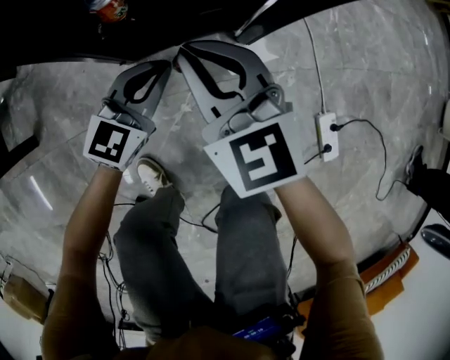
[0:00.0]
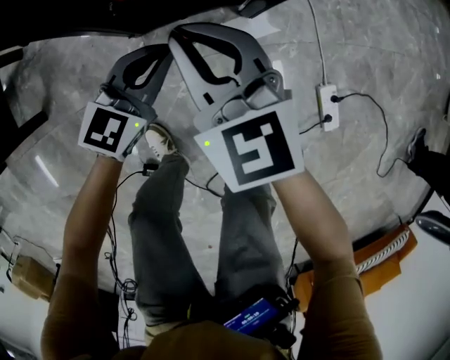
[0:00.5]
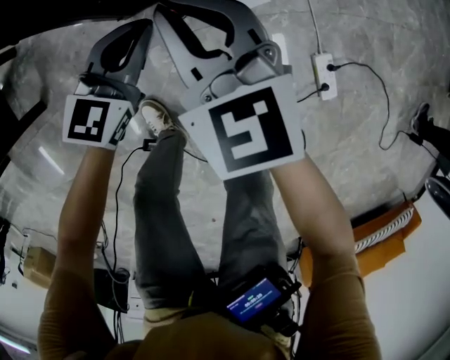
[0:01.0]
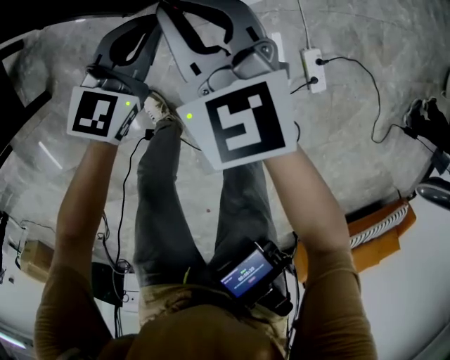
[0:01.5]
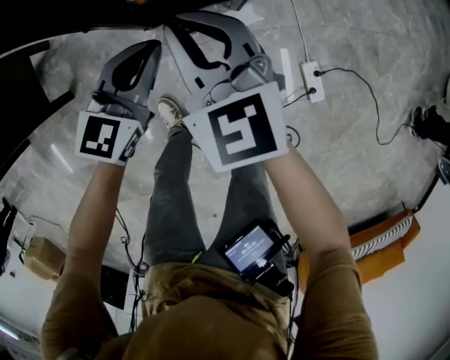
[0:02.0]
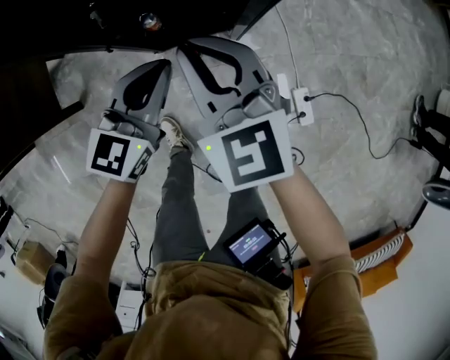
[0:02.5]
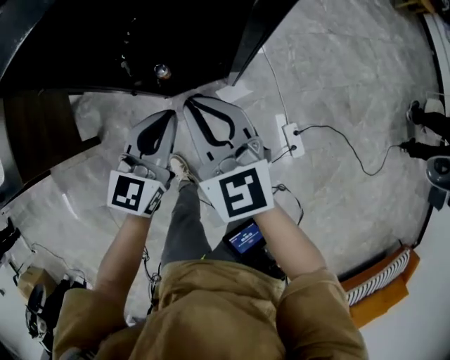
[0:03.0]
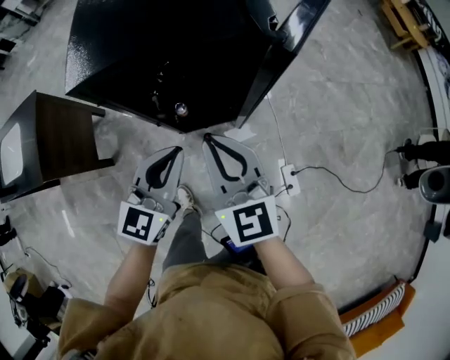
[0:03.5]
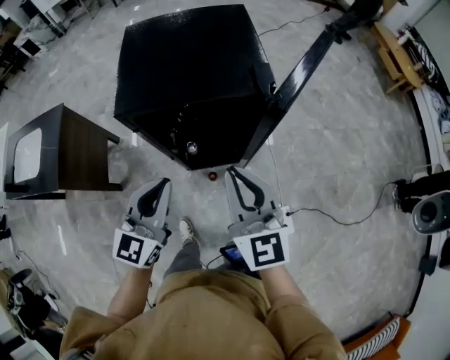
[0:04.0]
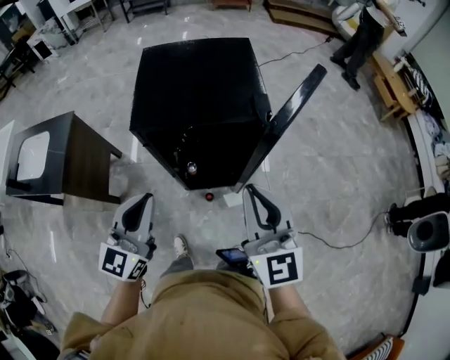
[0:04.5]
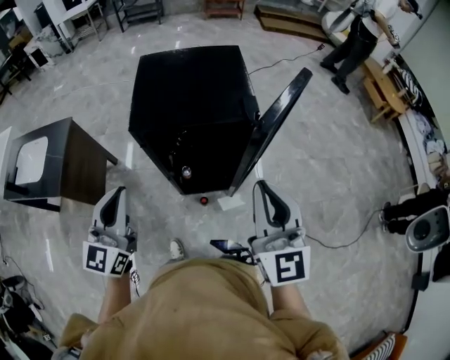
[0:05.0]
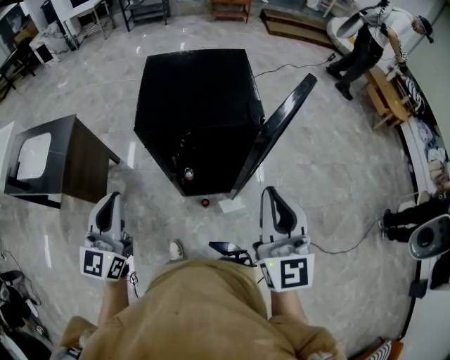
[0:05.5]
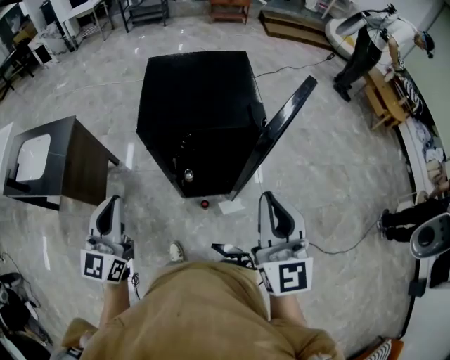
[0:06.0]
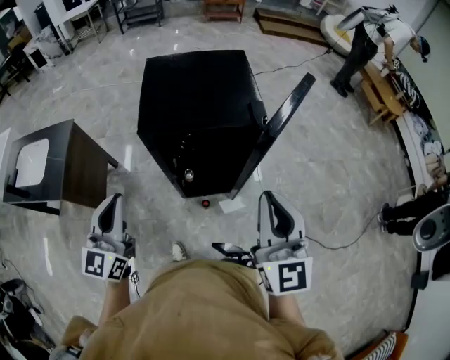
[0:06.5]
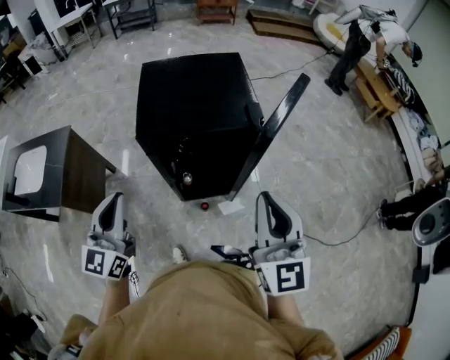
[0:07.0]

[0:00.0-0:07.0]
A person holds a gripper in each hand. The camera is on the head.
0:00.0 to 0:02.0: Both grippers travel together upward, roughly 30 cm.
0:02.0 to 0:03.5: Both grippers travel together upward, some 35 cm.
0:03.5 to 0:05.0: The left gripper shifts approximately 25 cm upward and to the left, and rotates approximately 20 degrees. Meanwhile the right gripper heads upward, covering some 20 cm.
0:05.0 to 0:07.0: There are only small adjustments of the grippers.

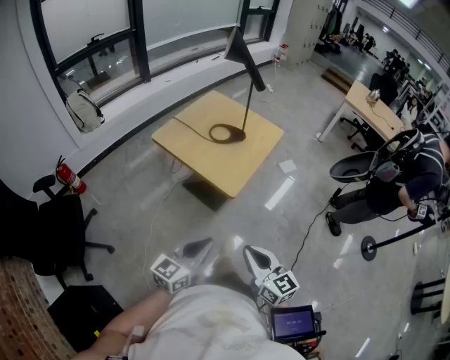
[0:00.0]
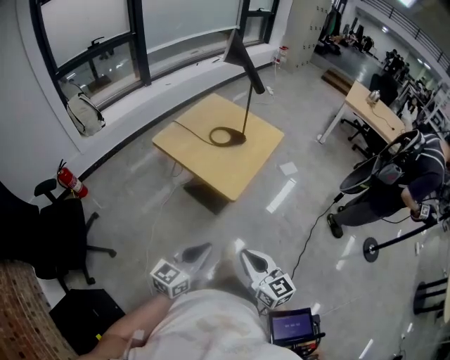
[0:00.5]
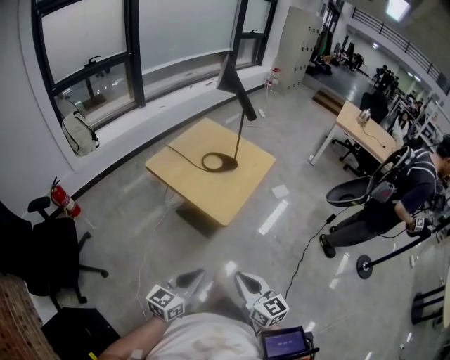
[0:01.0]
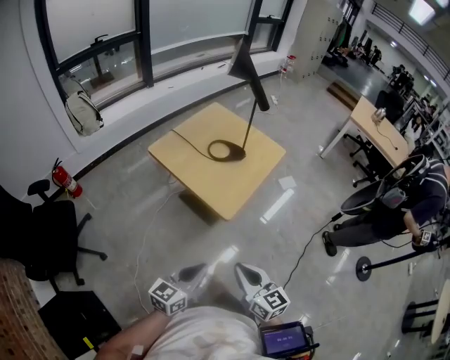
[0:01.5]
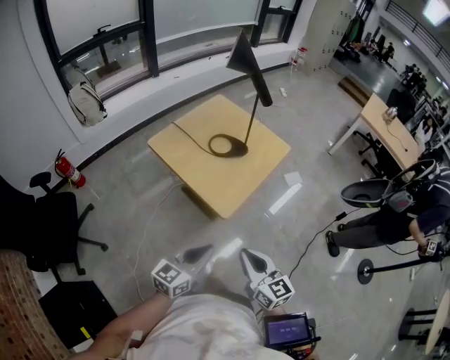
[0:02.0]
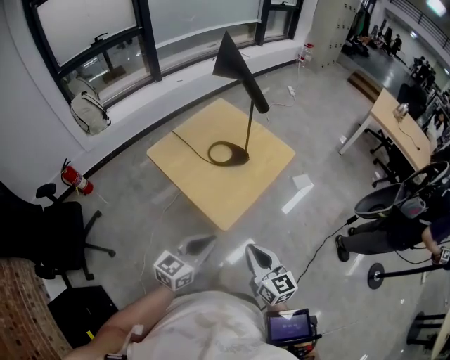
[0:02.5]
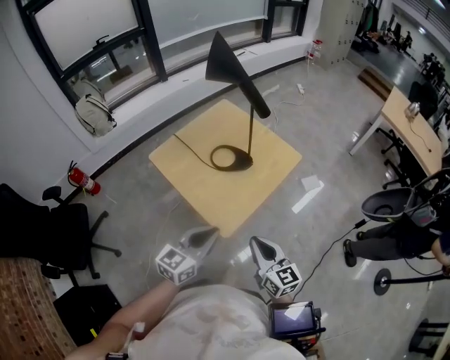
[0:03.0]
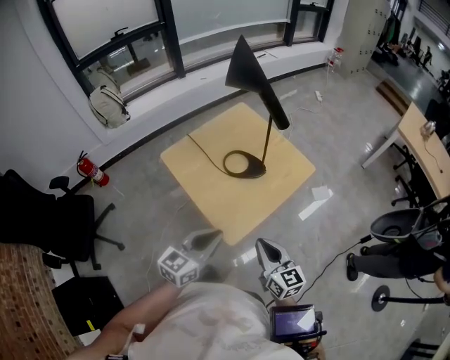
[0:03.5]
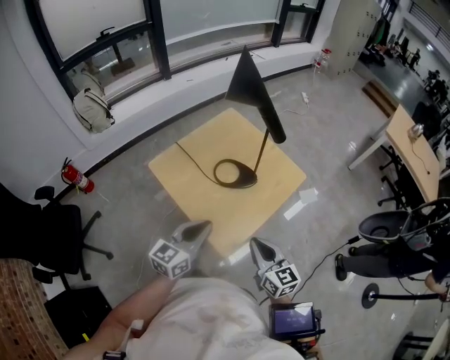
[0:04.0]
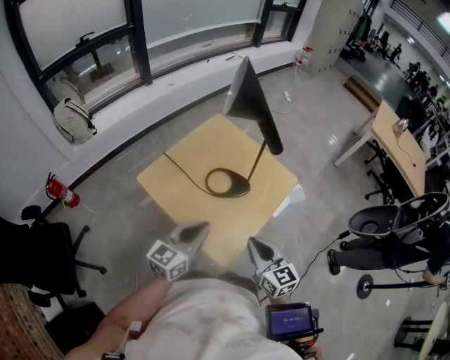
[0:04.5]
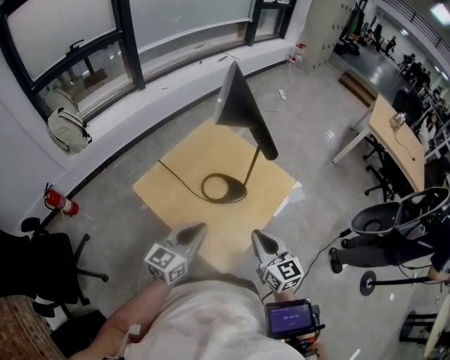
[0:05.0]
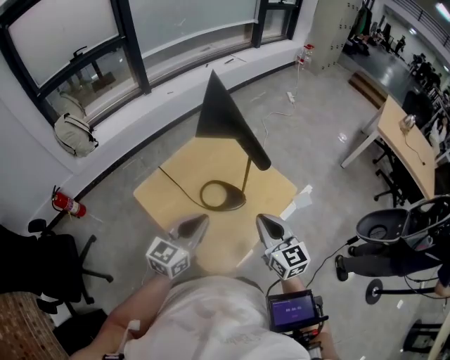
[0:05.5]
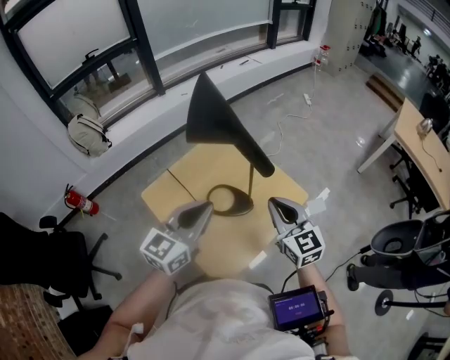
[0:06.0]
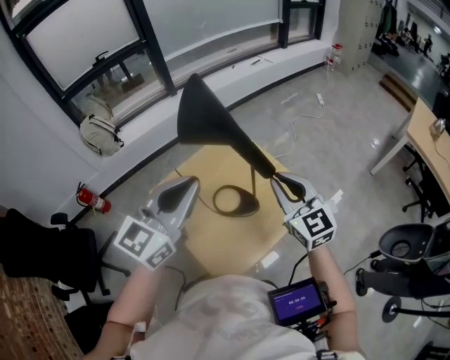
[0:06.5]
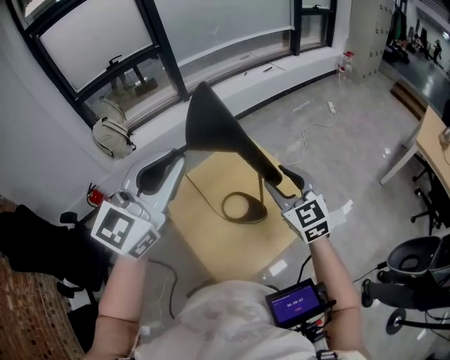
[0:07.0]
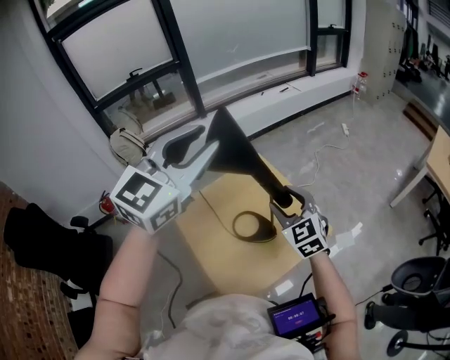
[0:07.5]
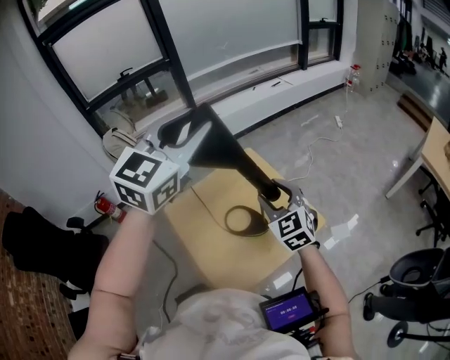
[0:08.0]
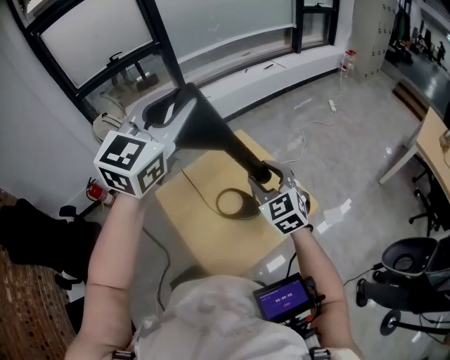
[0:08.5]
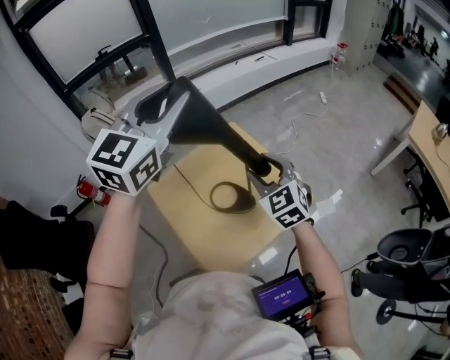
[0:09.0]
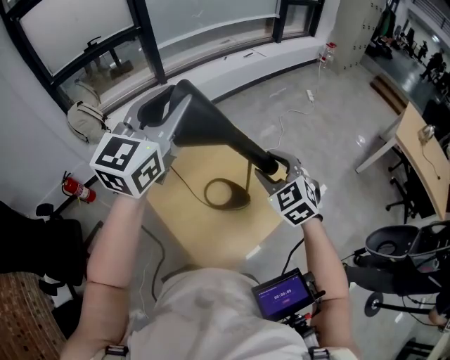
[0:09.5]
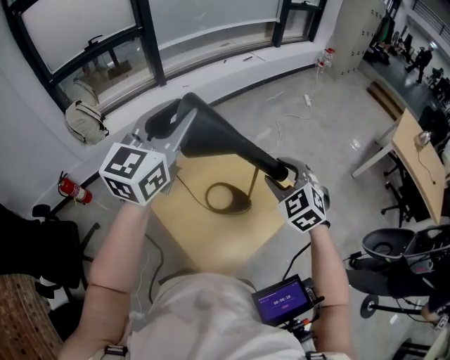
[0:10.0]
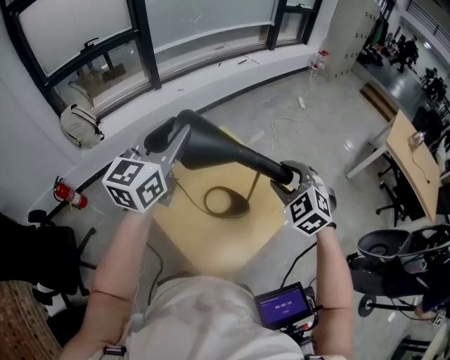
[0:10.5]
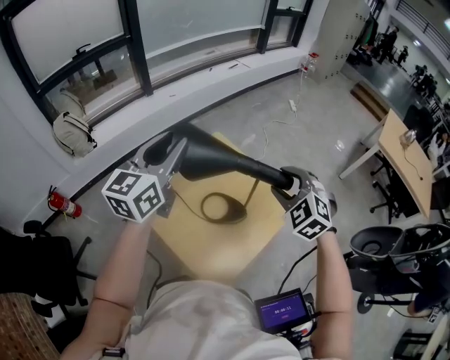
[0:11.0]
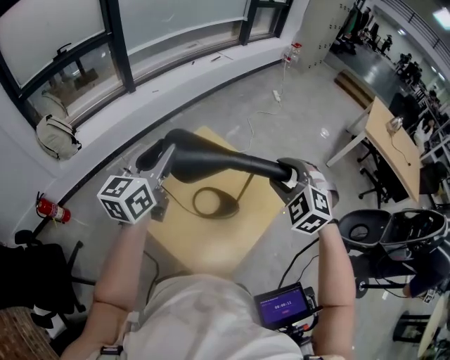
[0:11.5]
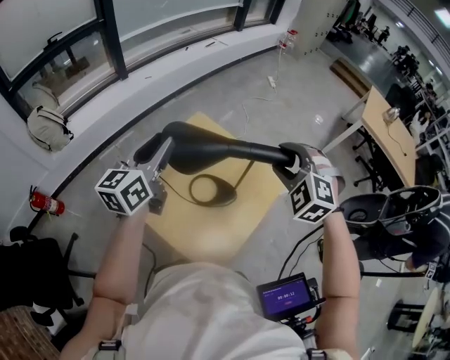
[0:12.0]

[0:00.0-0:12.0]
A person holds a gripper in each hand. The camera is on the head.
0:00.0 to 0:02.0: The grippers both shift forward by about 10 cm.
0:02.0 to 0:04.0: The two grippers go roughly 25 cm forward.
0:04.0 to 0:06.0: The grippers both shift forward and upward by roughly 20 cm.
0:06.0 to 0:08.0: The right gripper moves forward, some 10 cm, rotates some 20 degrees, and opens its fingers; the left gripper travels upward and forward by roughly 30 cm, swivels some 30 degrees, and opens up.
0:08.0 to 0:10.0: The right gripper swivels approximately 20 degrees. The left gripper heads to the left and downward, covering about 10 cm.
0:10.0 to 0:12.0: The right gripper rotates about 30 degrees; the left gripper heads downward, covering about 15 cm, and swivels some 30 degrees.

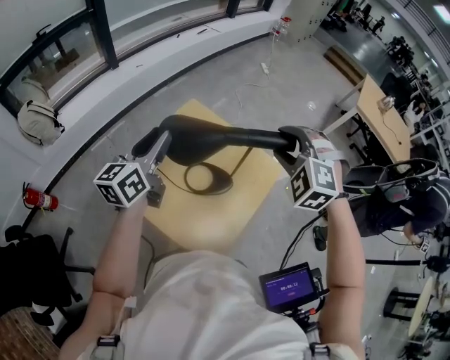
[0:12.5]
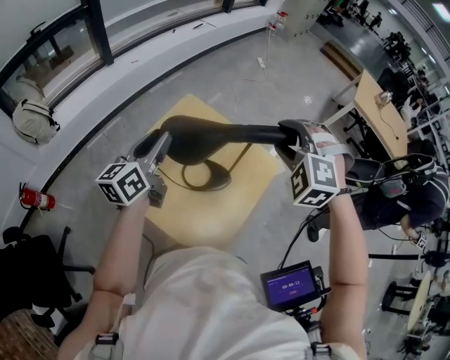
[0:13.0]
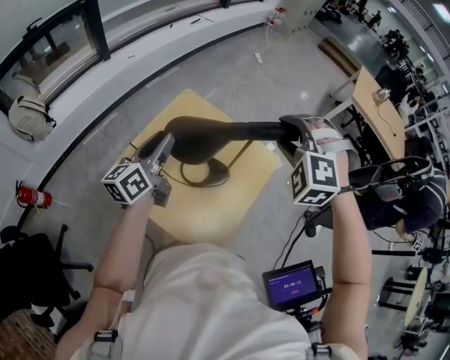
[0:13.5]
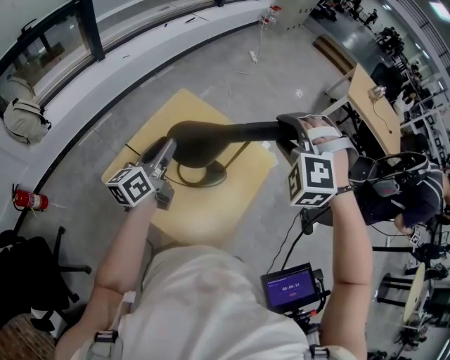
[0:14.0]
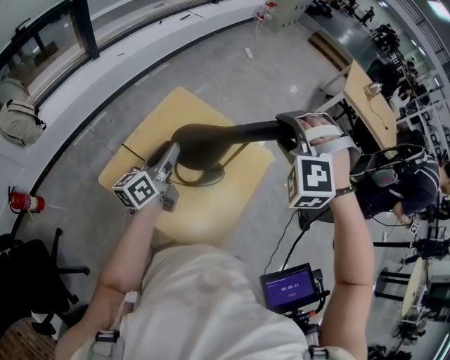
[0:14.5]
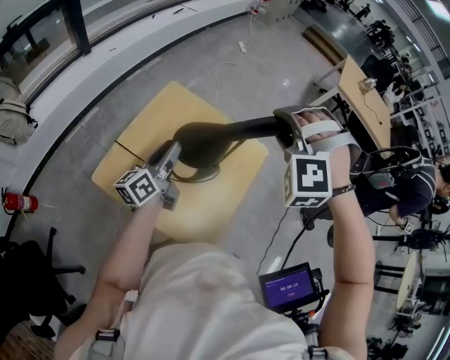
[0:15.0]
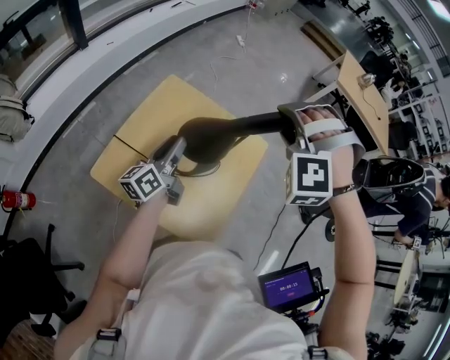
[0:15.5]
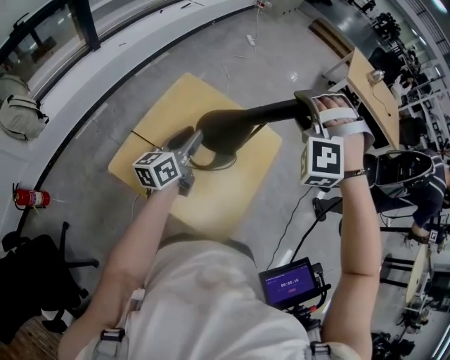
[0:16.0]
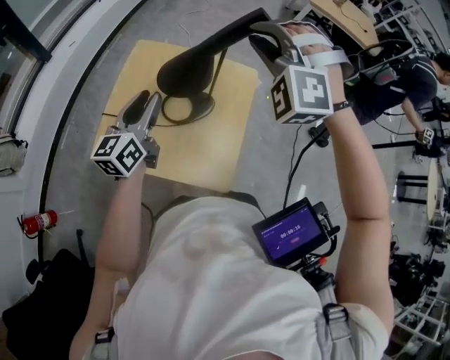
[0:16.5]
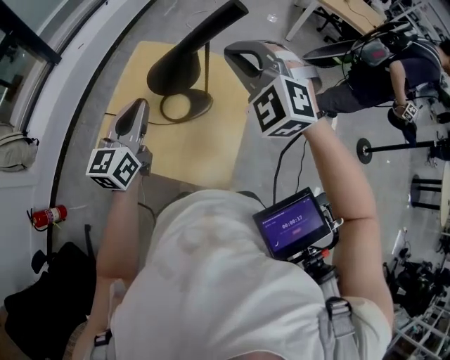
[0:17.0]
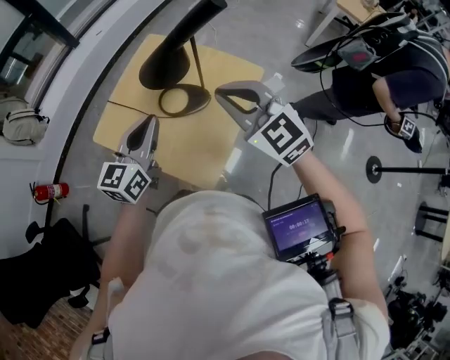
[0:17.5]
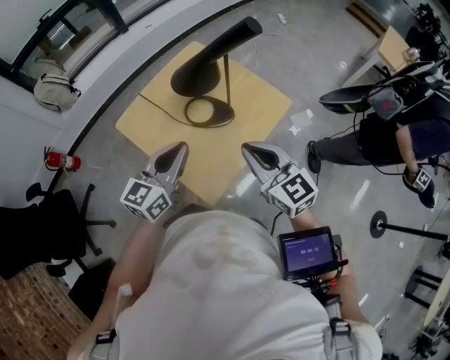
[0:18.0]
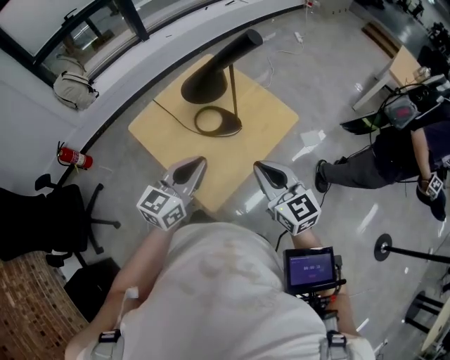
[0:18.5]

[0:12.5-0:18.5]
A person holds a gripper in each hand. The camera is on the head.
0:12.5 to 0:14.5: The left gripper moves downward, some 10 cm, and swivels about 20 degrees; the right gripper changes its angle by approximately 20 degrees.
0:14.5 to 0:16.5: The left gripper shifts by approximately 5 cm, and rotates some 30 degrees, while the right gripper shifts by approximately 5 cm, swivels about 20 degrees, and closes.
0:16.5 to 0:18.5: The left gripper changes place by about 25 cm, and closes its fingers, while the right gripper shifts by about 25 cm, and rolls clockwise, seen from behind, by roughly 80 degrees.

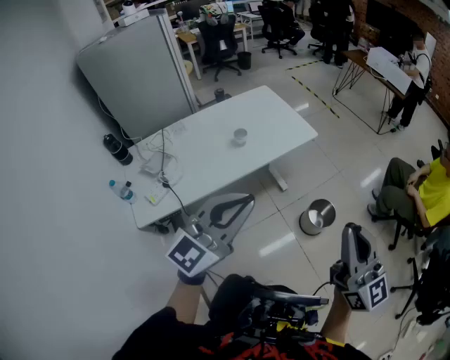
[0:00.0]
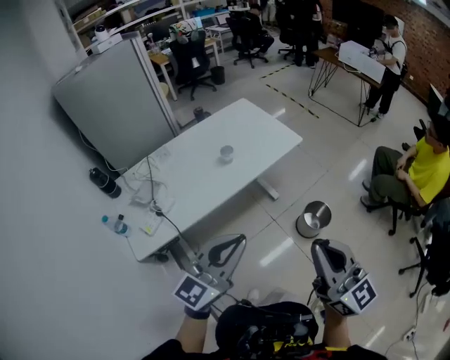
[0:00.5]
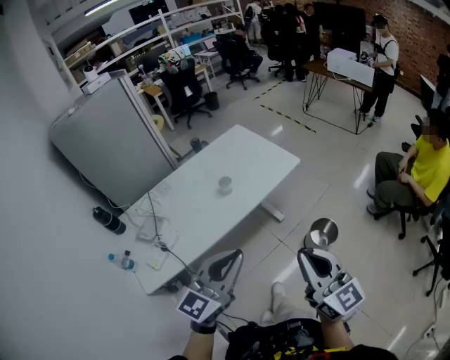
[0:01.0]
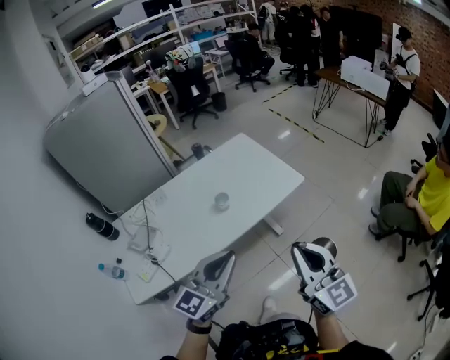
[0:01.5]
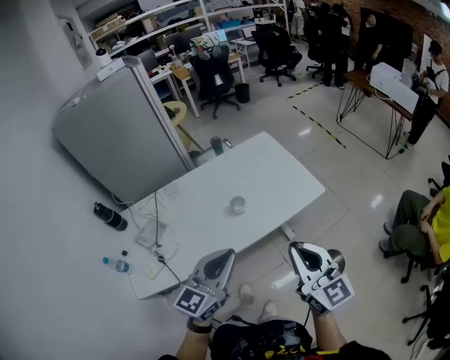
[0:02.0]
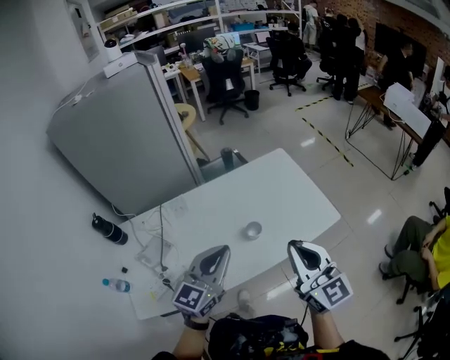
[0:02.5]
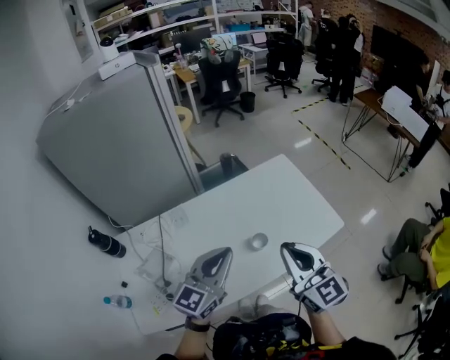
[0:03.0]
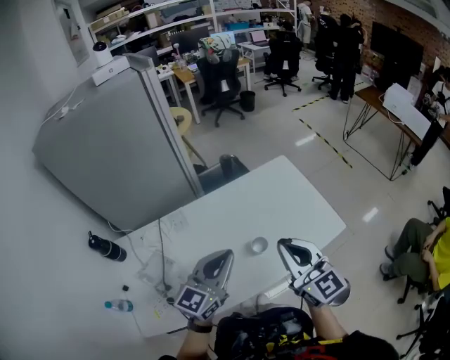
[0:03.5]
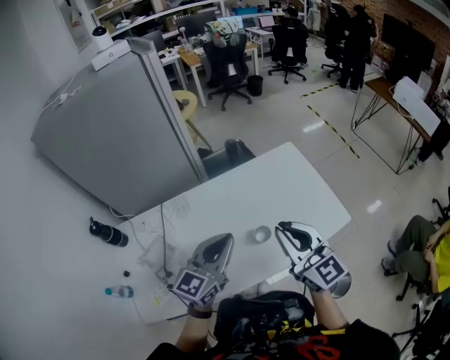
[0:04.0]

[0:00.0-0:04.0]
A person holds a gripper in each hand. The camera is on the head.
0:00.0 to 0:02.0: The left gripper goes approximately 25 cm forward and downward, and turns by approximately 20 degrees; the right gripper goes some 30 cm forward and to the left.
0:02.0 to 0:04.0: Both grippers move forward and to the left, some 25 cm.
